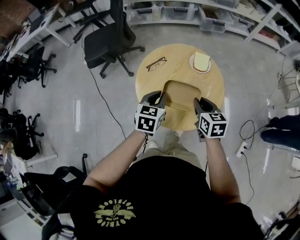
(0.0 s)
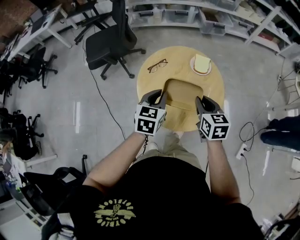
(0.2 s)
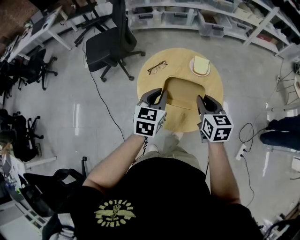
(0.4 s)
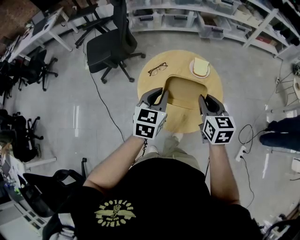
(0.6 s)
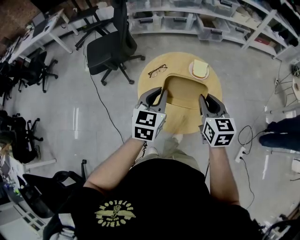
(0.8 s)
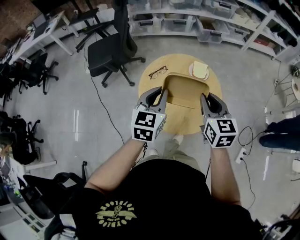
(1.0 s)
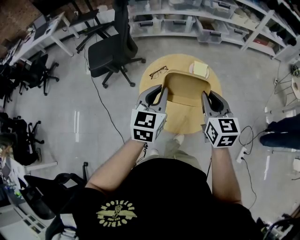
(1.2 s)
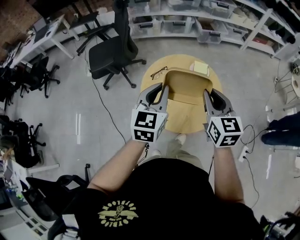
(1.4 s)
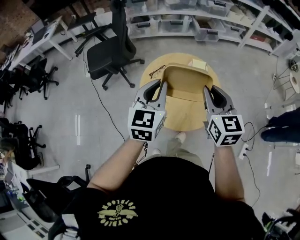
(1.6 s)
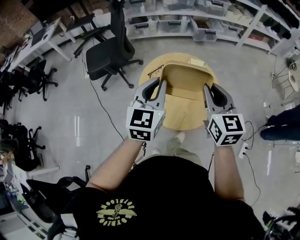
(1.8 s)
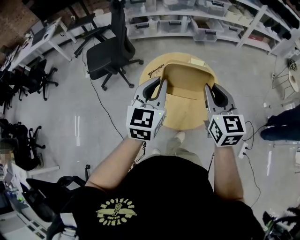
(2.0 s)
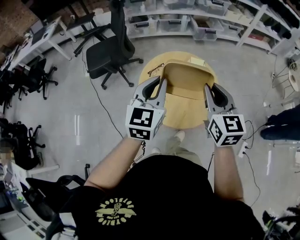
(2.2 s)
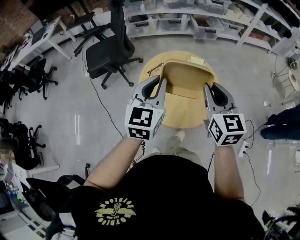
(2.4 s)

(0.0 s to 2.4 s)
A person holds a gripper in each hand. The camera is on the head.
0.0 s - 1.2 s: Both grippers travel together upward, roughly 15 cm. The right gripper changes its angle by some 20 degrees, while the left gripper rotates about 20 degrees.
1.2 s - 2.4 s: Both grippers move upward, some 5 cm.

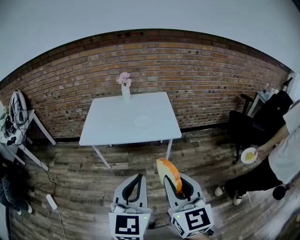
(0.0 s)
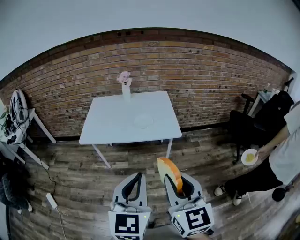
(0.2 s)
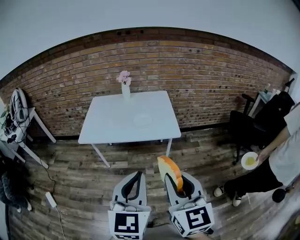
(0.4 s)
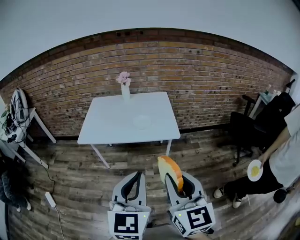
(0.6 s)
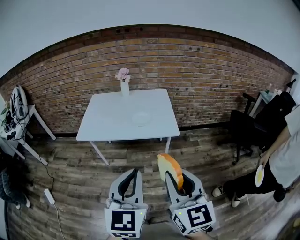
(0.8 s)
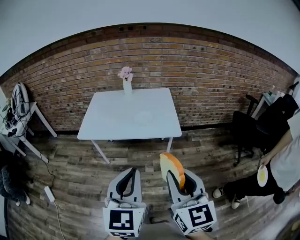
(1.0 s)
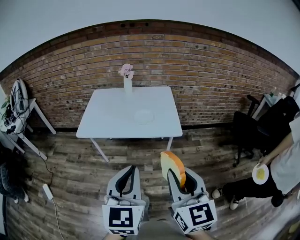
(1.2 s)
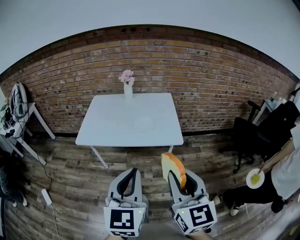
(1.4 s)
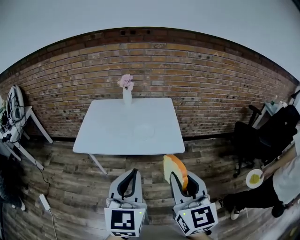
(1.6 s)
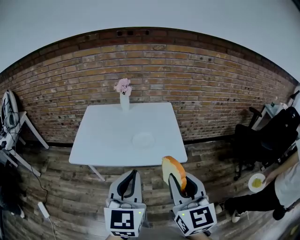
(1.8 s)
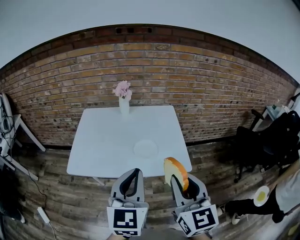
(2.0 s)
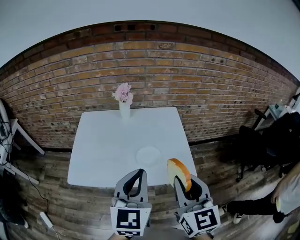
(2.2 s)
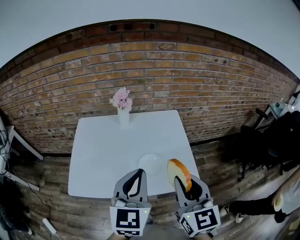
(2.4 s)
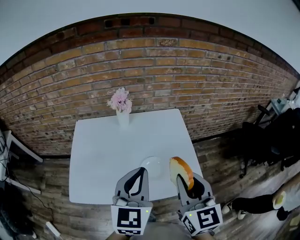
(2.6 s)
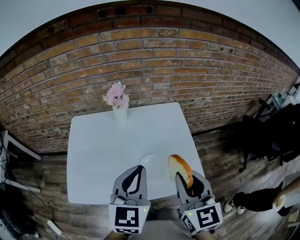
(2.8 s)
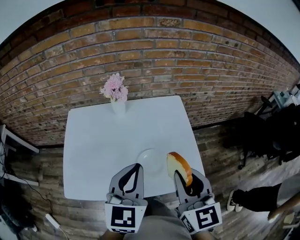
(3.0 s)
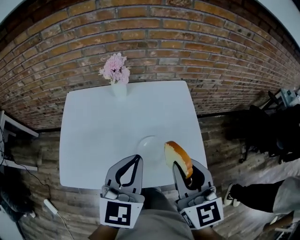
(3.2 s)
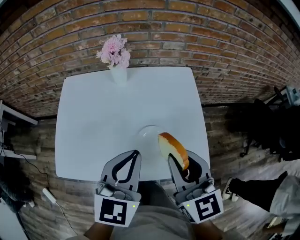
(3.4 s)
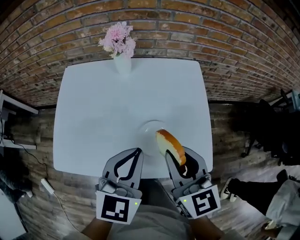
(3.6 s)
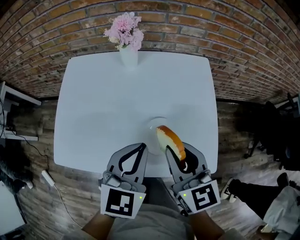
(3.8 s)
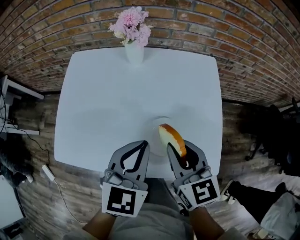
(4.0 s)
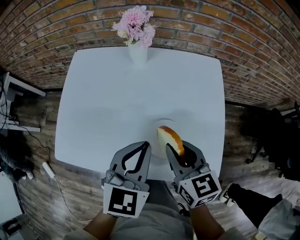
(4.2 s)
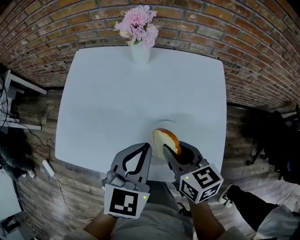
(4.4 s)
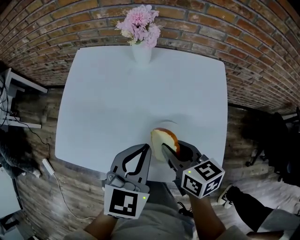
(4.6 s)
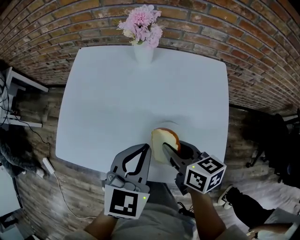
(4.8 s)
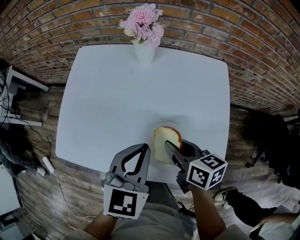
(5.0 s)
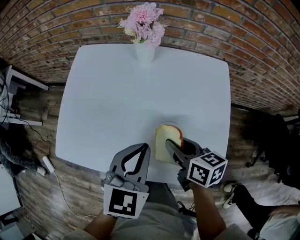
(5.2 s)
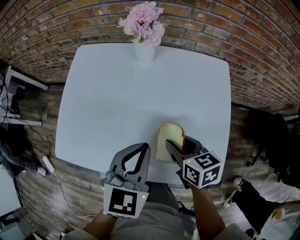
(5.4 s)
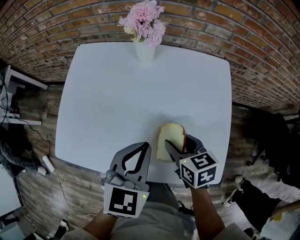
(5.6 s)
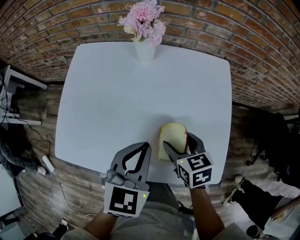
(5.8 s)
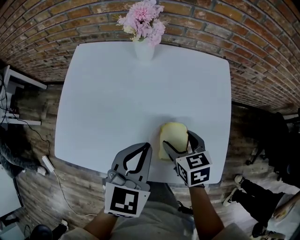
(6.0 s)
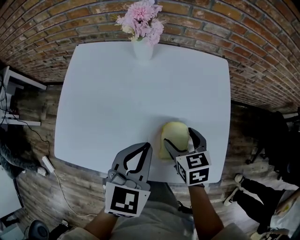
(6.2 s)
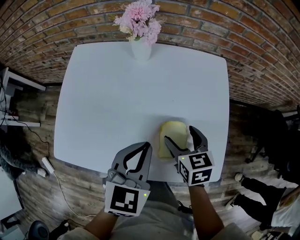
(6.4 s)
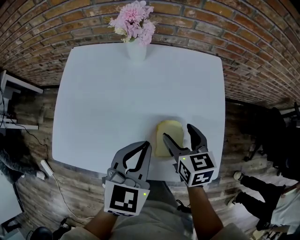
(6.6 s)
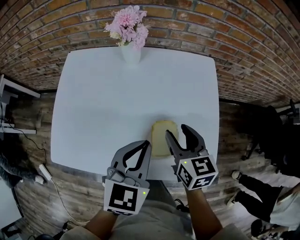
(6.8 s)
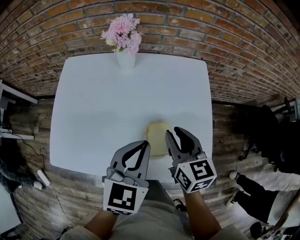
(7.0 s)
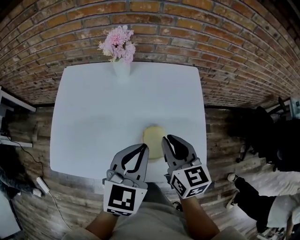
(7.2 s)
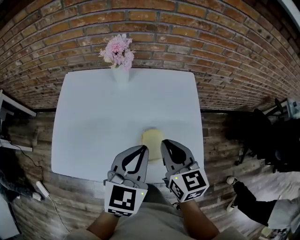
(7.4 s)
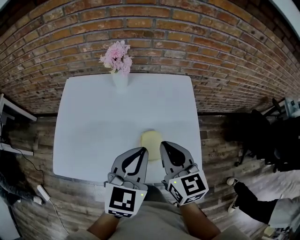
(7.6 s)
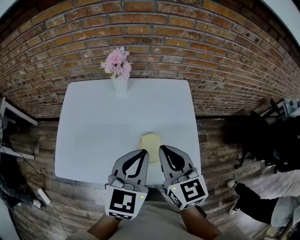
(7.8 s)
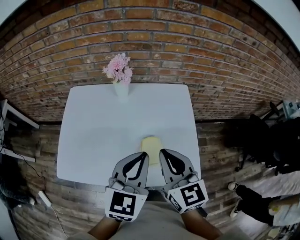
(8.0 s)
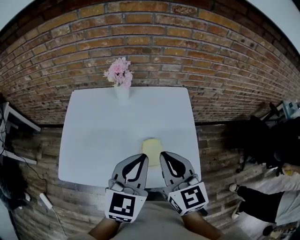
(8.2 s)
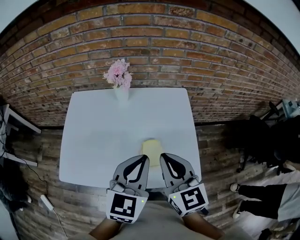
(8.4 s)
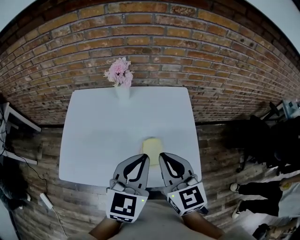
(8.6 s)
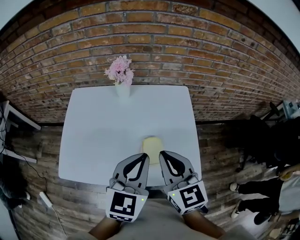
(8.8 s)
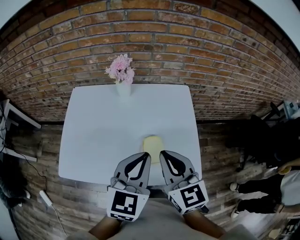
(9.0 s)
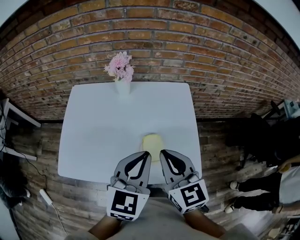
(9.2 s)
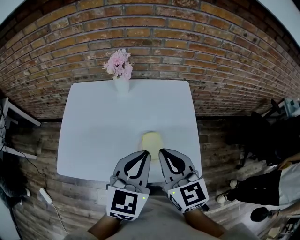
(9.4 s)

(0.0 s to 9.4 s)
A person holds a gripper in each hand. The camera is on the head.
0.0 s - 1.6 s: Both grippers travel together forward, about 15 cm.
1.6 s - 3.2 s: The grippers both shift forward by roughly 40 cm.
3.2 s - 4.8 s: The left gripper heads downward, covering about 10 cm. The right gripper travels downward by approximately 20 cm, and rotates about 50 degrees.
4.8 s - 6.2 s: The right gripper heads downward, covering approximately 5 cm, swivels roughly 30 degrees, and opens up.
6.2 s - 7.8 s: The left gripper shifts approximately 10 cm upward, while the right gripper shifts some 20 cm upward, points its fingers some 30 degrees further upward, and closes up.
7.8 s - 9.4 s: There are only small adjustments of the grippers.

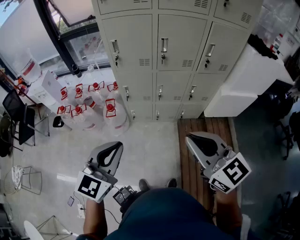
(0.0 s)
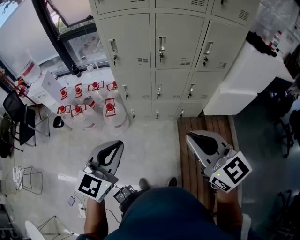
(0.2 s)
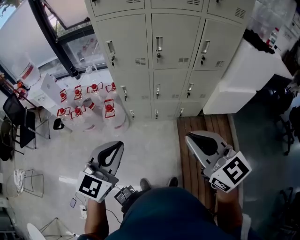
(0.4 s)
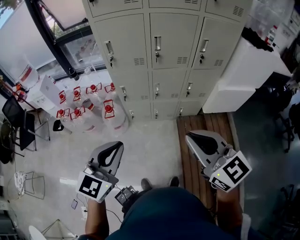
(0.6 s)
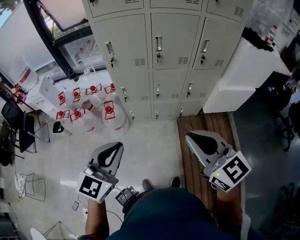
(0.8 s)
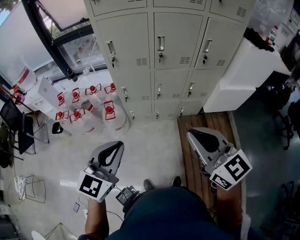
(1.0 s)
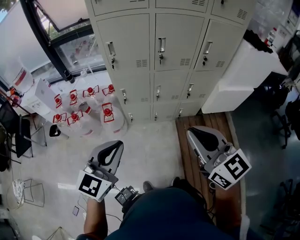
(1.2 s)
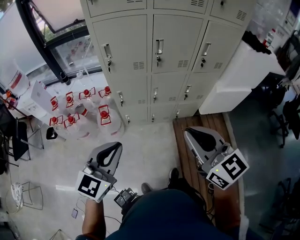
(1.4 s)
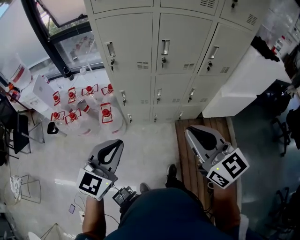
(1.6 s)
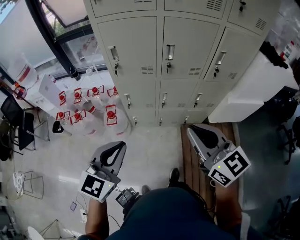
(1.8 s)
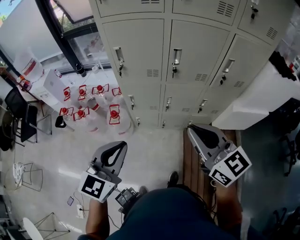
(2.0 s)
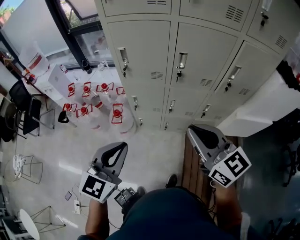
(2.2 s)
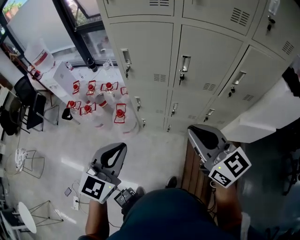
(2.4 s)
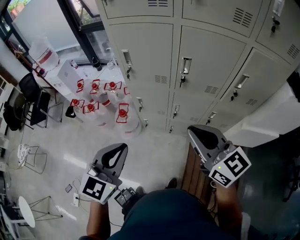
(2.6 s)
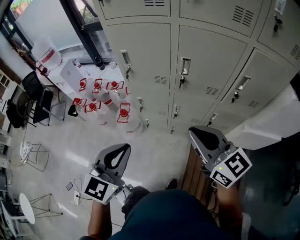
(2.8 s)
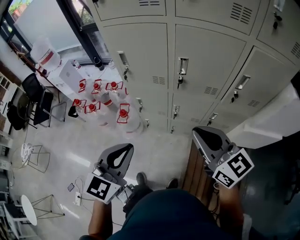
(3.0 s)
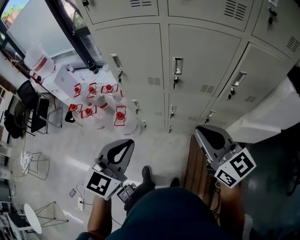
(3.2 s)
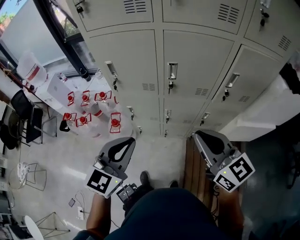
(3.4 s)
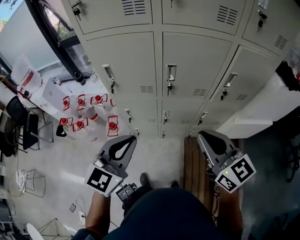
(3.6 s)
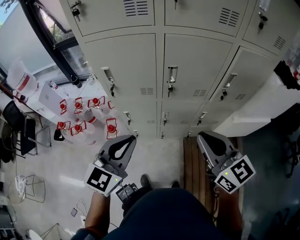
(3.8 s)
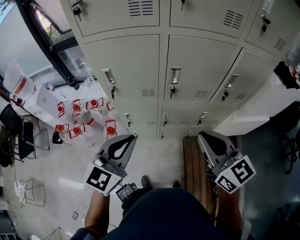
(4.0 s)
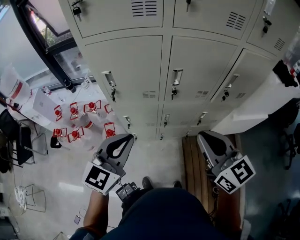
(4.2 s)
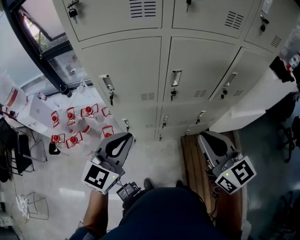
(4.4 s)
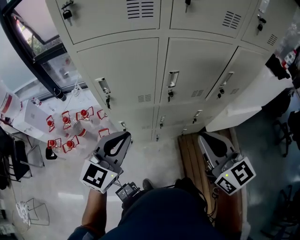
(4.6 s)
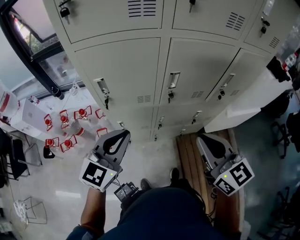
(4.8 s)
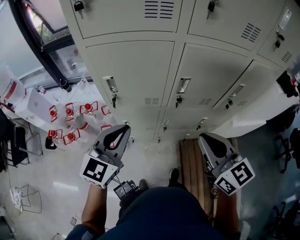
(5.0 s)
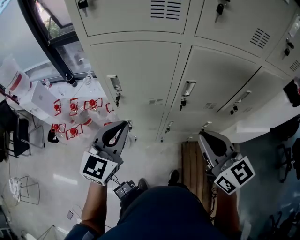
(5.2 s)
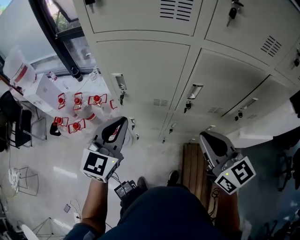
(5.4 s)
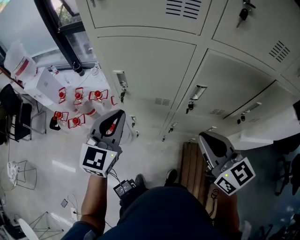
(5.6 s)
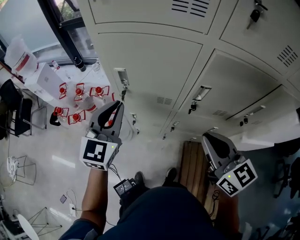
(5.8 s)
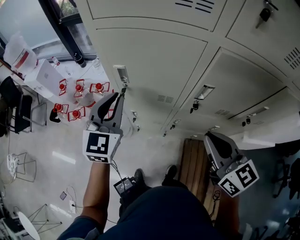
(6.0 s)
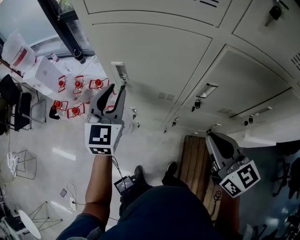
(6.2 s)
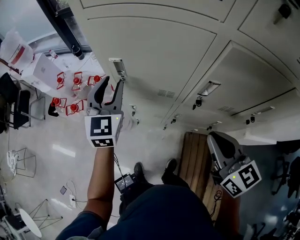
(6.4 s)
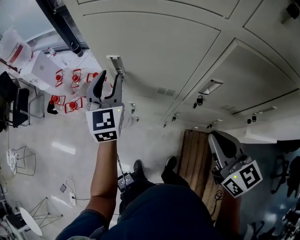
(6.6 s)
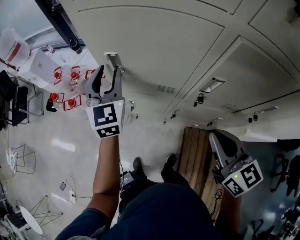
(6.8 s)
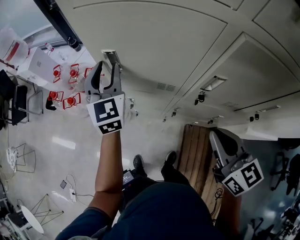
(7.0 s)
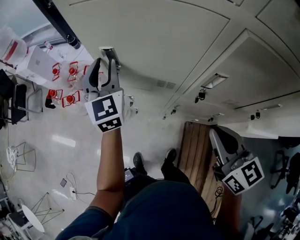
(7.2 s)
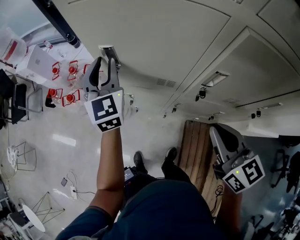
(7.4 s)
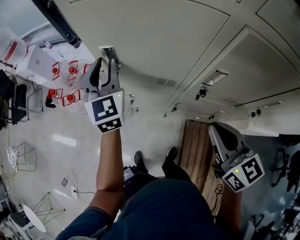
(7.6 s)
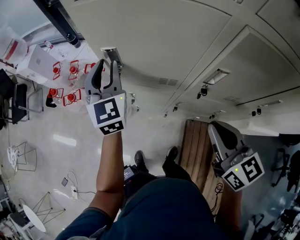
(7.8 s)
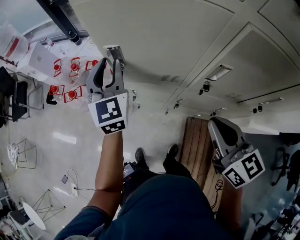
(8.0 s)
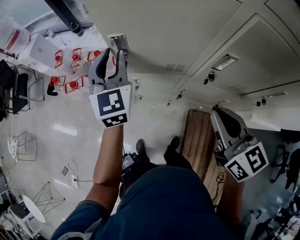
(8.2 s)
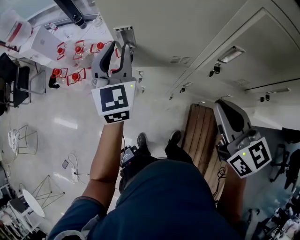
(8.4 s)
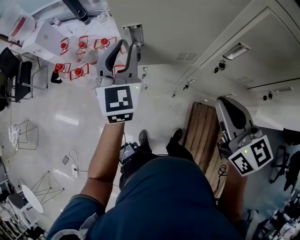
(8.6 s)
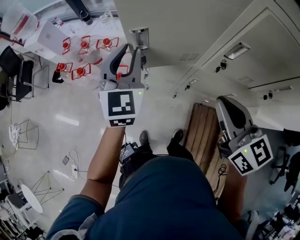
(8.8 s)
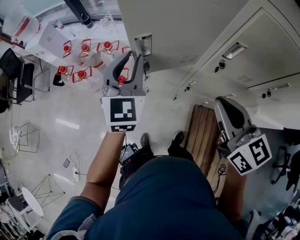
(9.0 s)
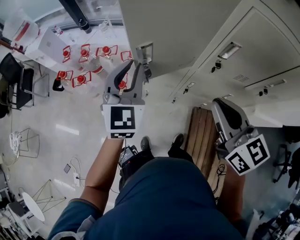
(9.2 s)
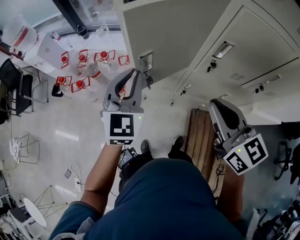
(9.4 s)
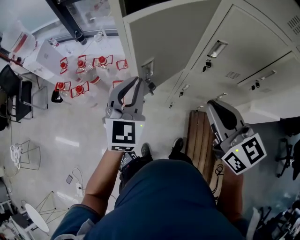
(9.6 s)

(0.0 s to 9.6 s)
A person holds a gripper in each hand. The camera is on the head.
0.0 s - 1.6 s: The two grippers go about 10 cm forward.
1.6 s - 3.2 s: The right gripper shifts roughly 20 cm forward and to the right. The left gripper shifts about 20 cm to the right and forward.
3.2 s - 4.8 s: The right gripper travels to the left by about 10 cm, and turns by approximately 20 degrees; the left gripper moves forward and to the left, roughly 20 cm, and changes its angle by about 20 degrees.
4.8 s - 6.4 s: The left gripper changes place by some 20 cm, turns by approximately 40 degrees, and opens up; the right gripper shifts by about 15 cm.
6.4 s - 8.0 s: There are only small adjustments of the grippers.
8.0 s - 9.6 s: The left gripper goes roughly 20 cm backward, and changes its angle by about 20 degrees. The right gripper goes about 10 cm to the left and backward.

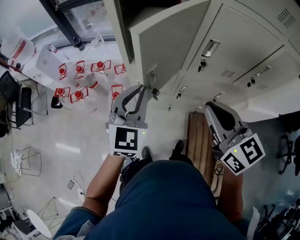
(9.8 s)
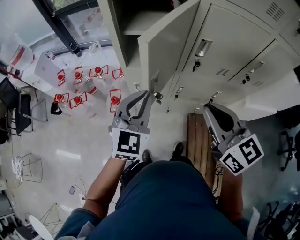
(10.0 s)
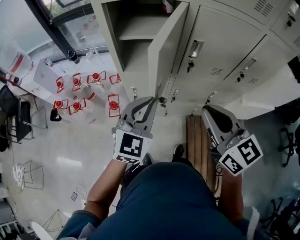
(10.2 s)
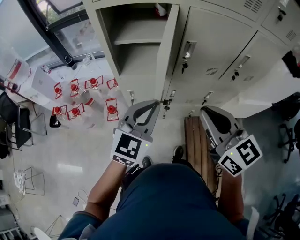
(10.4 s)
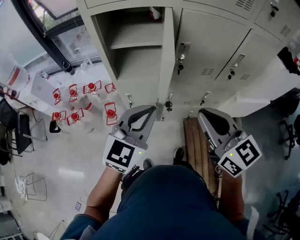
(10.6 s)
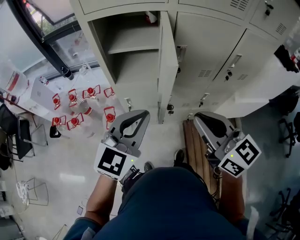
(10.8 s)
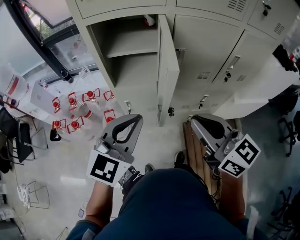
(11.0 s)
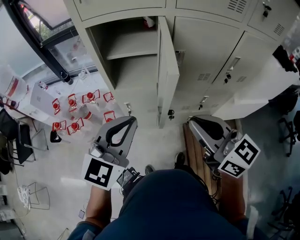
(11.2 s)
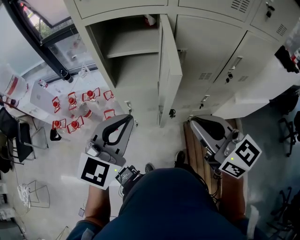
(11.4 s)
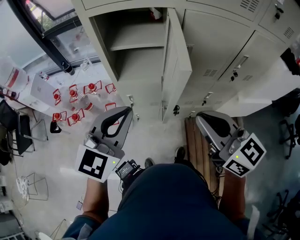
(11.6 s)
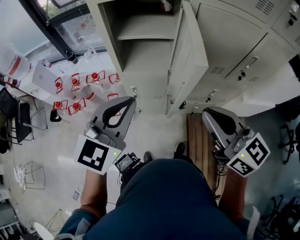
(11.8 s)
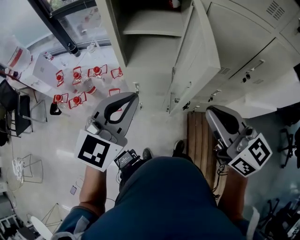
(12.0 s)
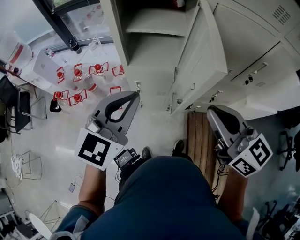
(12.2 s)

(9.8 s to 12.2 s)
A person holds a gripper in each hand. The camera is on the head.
9.8 s - 11.0 s: The left gripper is displaced backward, upward and to the right by approximately 15 cm, and changes its angle by roughly 20 degrees; the right gripper travels backward by roughly 5 cm.
11.0 s - 12.2 s: The left gripper heads to the left and forward, covering approximately 10 cm. The right gripper shifts by roughly 5 cm.
